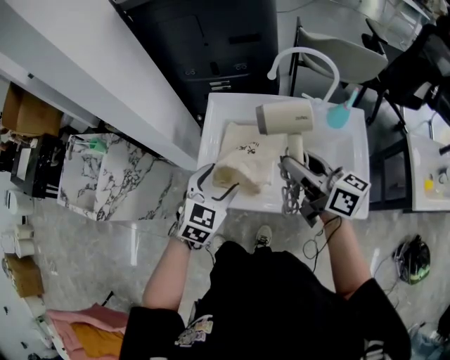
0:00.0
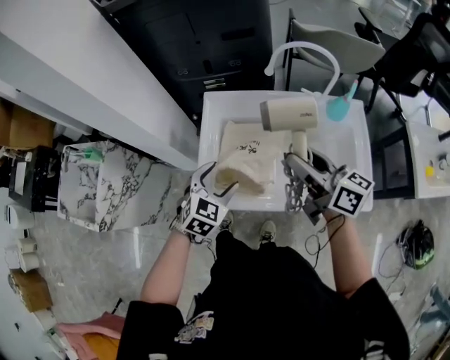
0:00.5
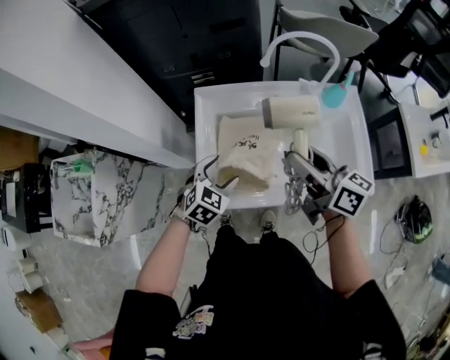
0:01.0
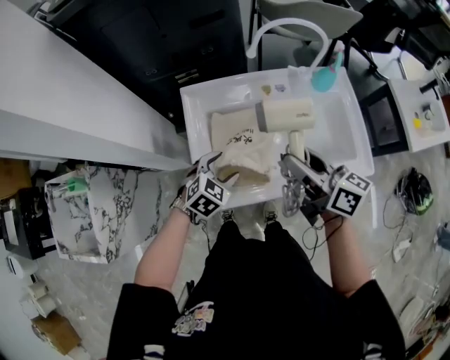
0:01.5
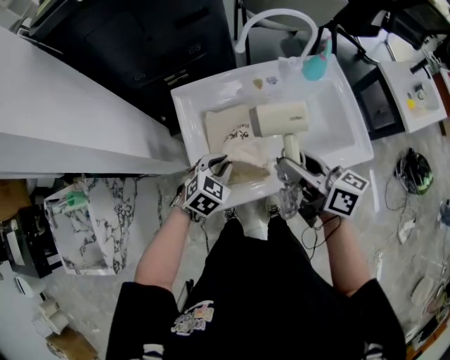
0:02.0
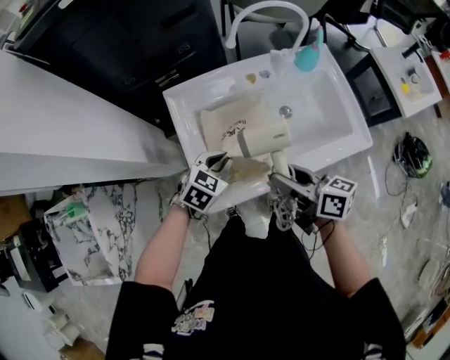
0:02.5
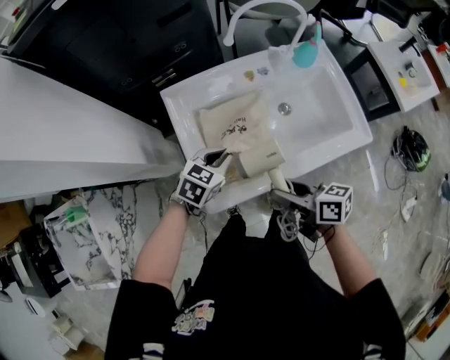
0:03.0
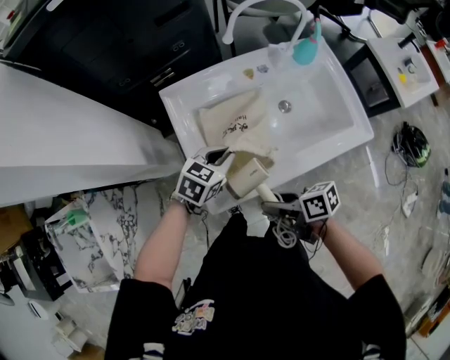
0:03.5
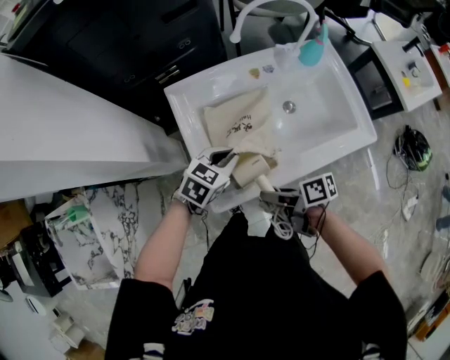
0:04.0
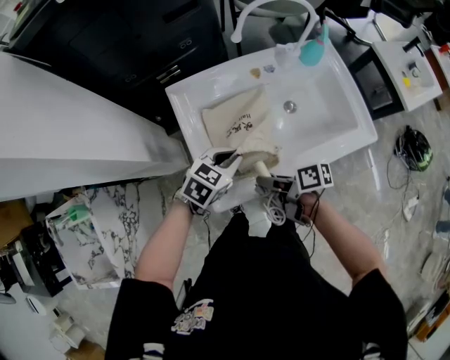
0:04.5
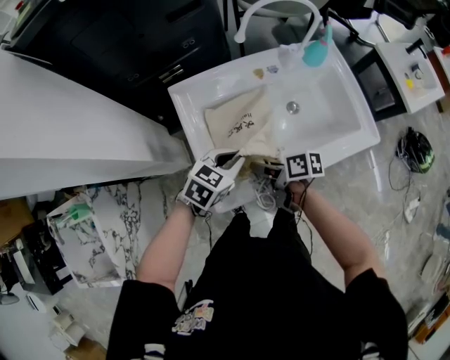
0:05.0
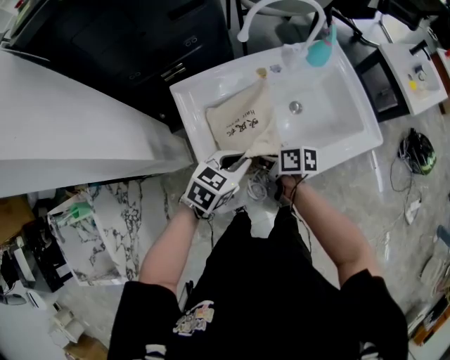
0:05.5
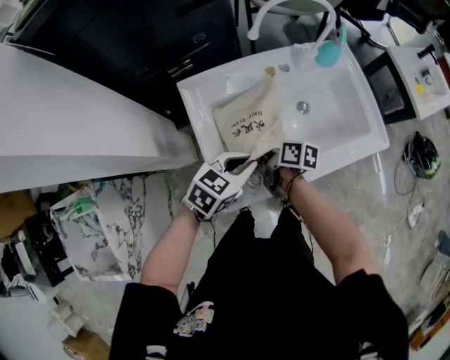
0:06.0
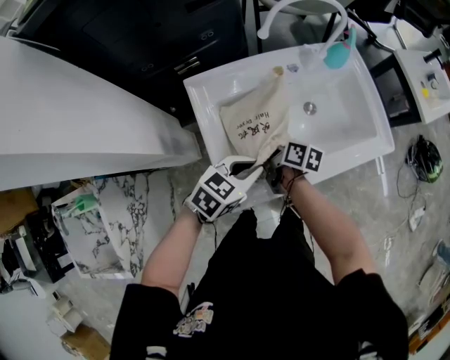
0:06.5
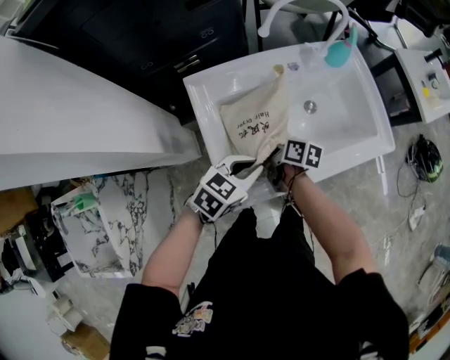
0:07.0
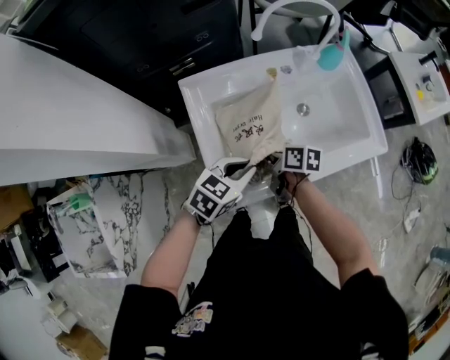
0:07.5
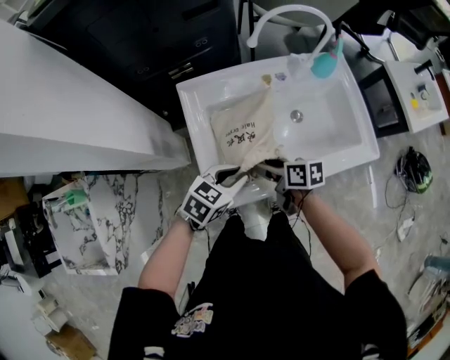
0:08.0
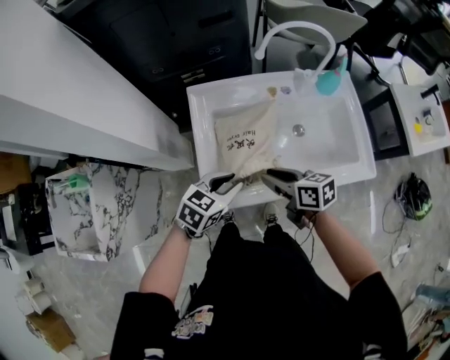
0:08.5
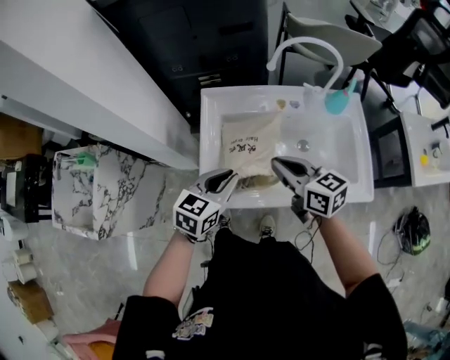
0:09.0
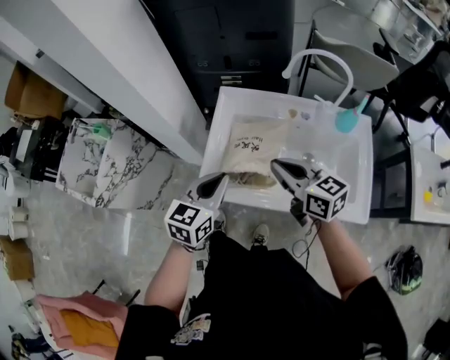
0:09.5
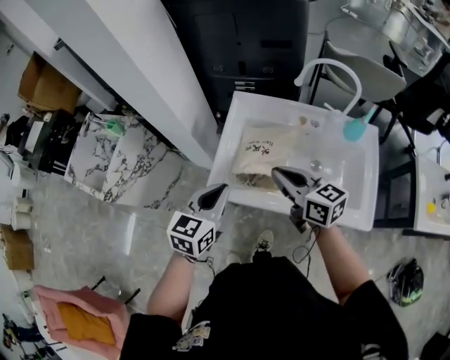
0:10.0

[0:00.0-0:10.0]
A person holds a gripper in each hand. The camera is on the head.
0:00.0 to 0:02.0: The left gripper heads downward, covering some 10 cm, changes its angle by some 30 degrees, and closes. Meanwhile the right gripper travels downward by some 5 cm, and changes its angle by roughly 20 degrees.
0:02.0 to 0:04.0: The right gripper goes approximately 15 cm downward, and turns by some 40 degrees.
0:04.0 to 0:06.0: The right gripper changes place by some 15 cm, and swivels approximately 30 degrees.
0:06.0 to 0:08.0: The right gripper changes place by about 5 cm, and changes its angle by roughly 20 degrees.
0:08.0 to 0:10.0: Both grippers travel together upward, some 15 cm. The right gripper rotates roughly 50 degrees, and closes up. The left gripper swivels some 50 degrees.

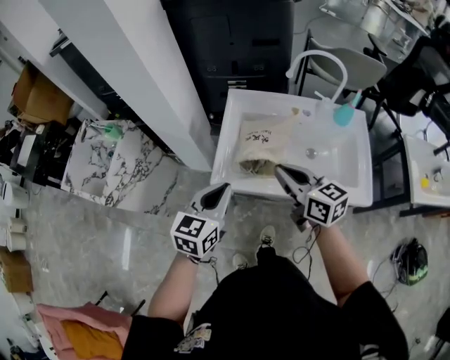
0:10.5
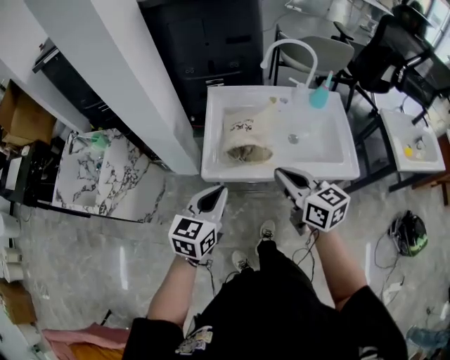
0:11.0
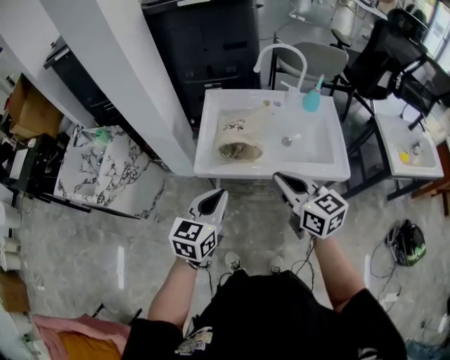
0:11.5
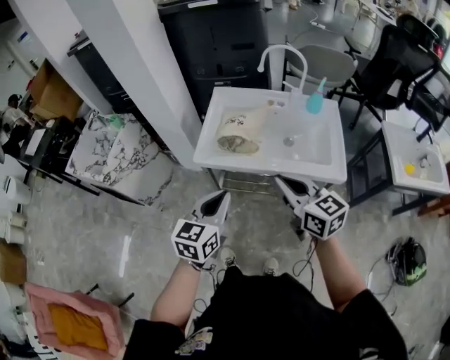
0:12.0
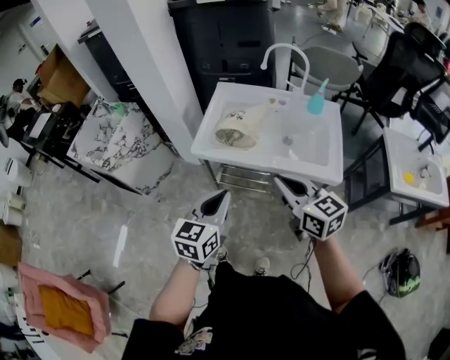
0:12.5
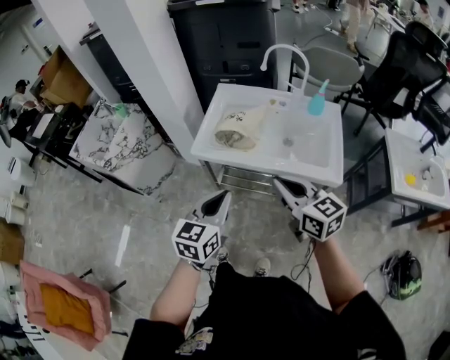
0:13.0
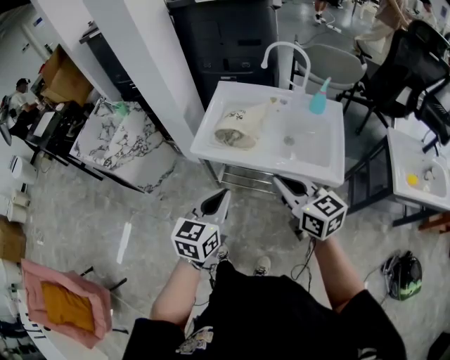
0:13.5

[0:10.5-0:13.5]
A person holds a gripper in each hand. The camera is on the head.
0:10.5 to 0:12.0: The two grippers go about 20 cm backward and to the right.
0:12.0 to 0:13.5: The grippers make only small movements.

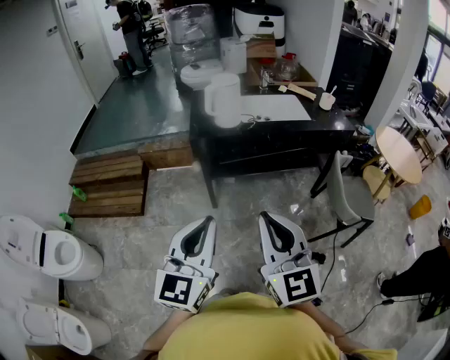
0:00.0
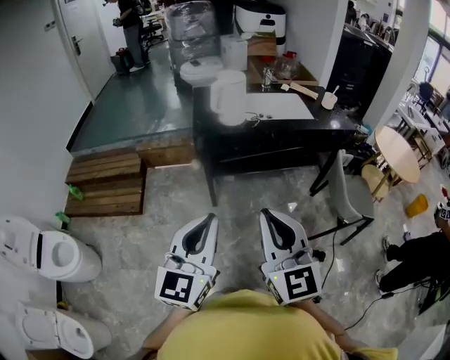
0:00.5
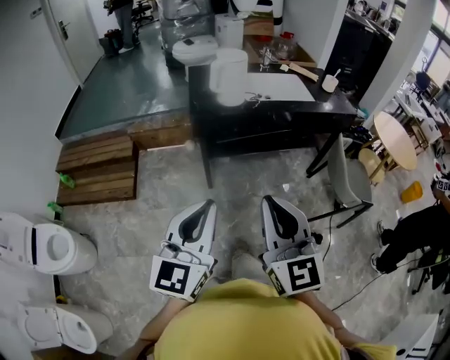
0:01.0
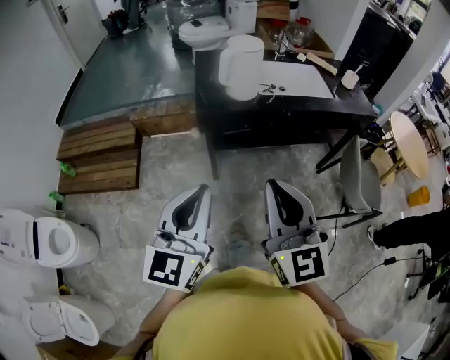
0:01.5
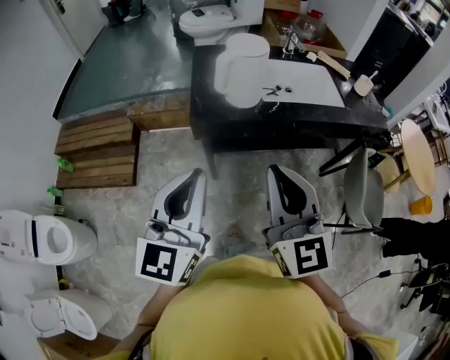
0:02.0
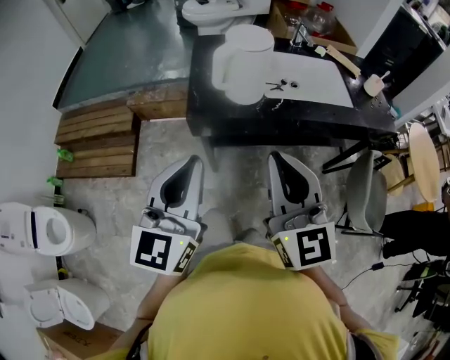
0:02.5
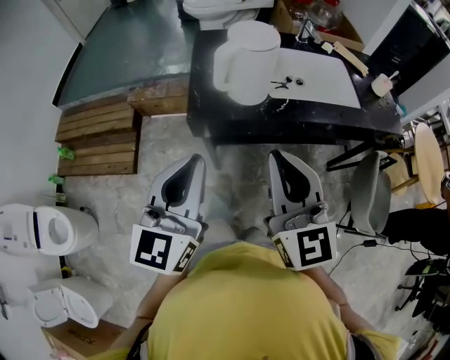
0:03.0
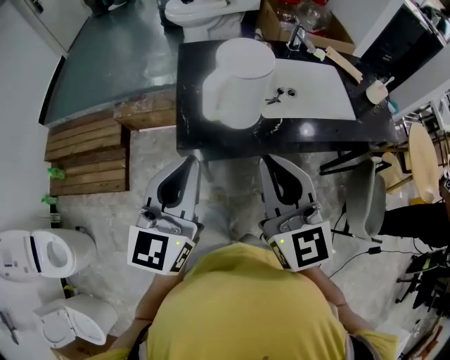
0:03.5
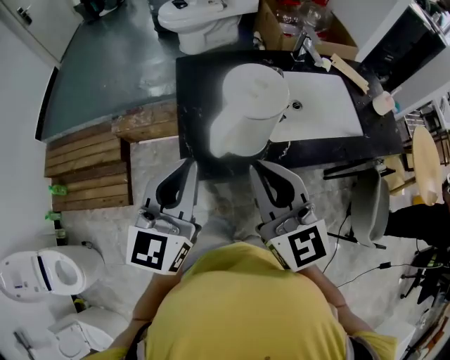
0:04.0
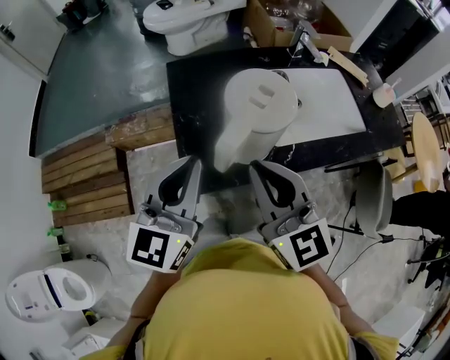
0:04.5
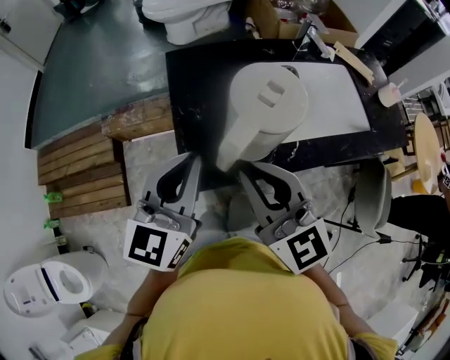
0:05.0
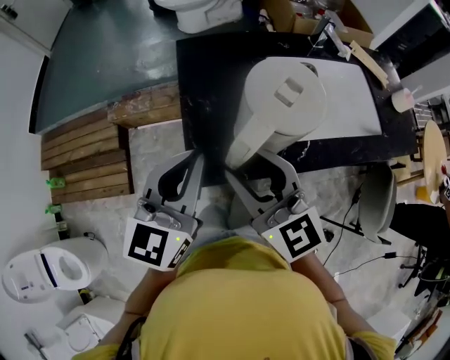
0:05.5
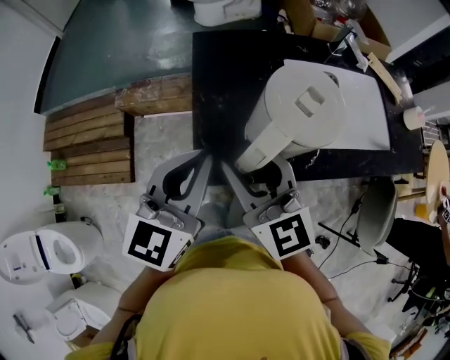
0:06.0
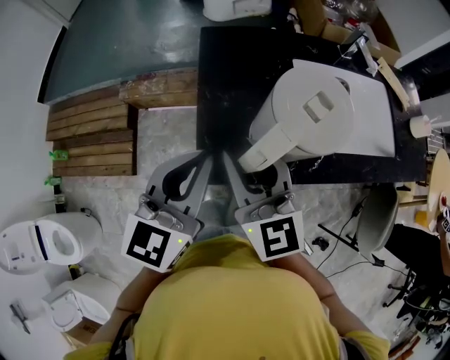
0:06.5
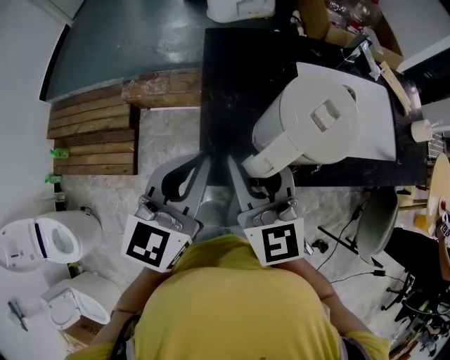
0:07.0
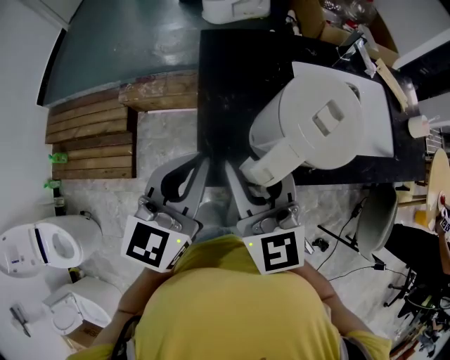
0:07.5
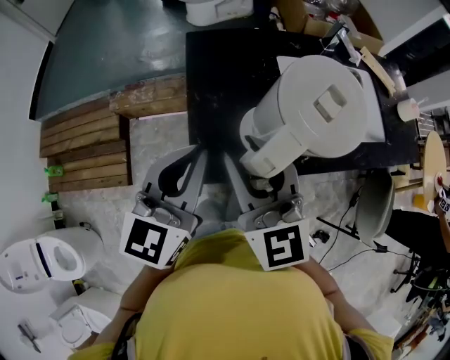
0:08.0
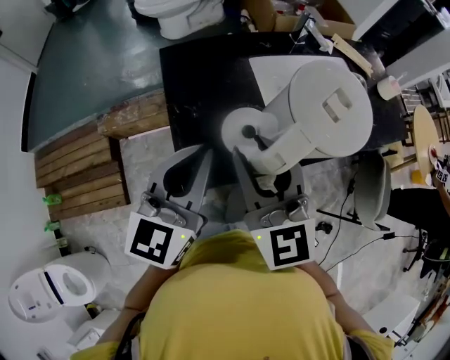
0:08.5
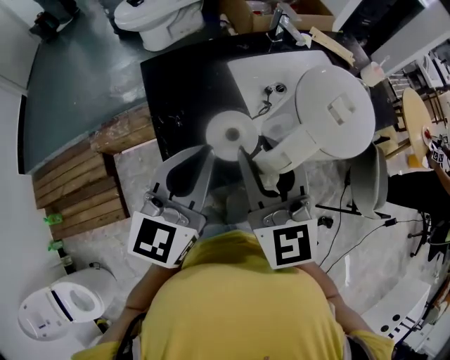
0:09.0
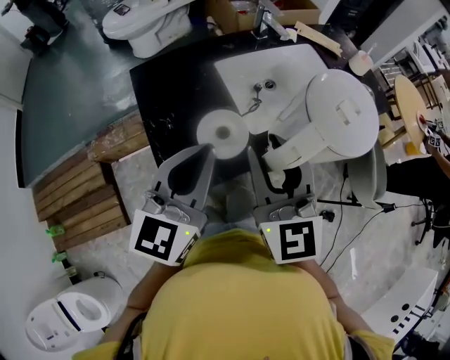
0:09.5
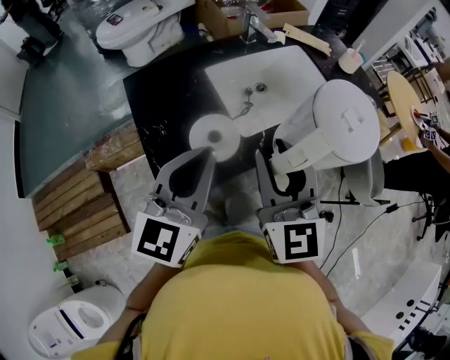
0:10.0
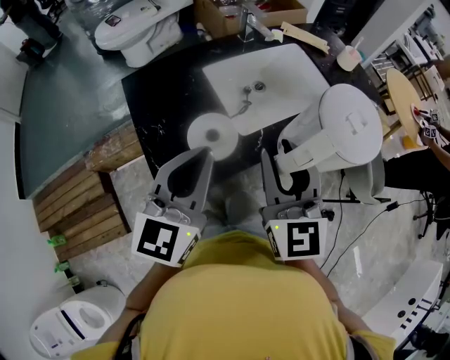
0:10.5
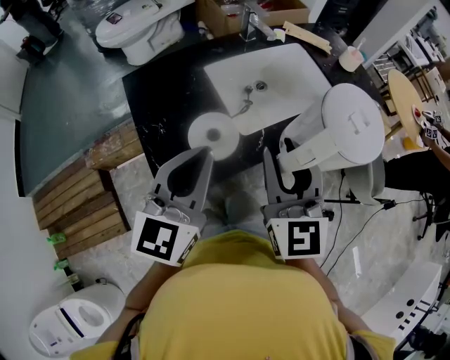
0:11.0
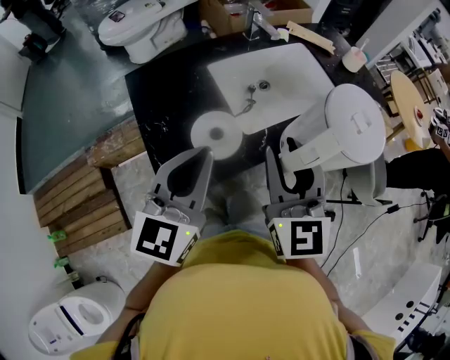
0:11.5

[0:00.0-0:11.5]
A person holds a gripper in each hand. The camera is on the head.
0:00.0 to 0:02.0: The grippers both shift forward by some 25 cm.
0:02.0 to 0:04.0: Both grippers travel together forward, about 30 cm.
0:04.0 to 0:06.0: The right gripper shifts approximately 15 cm forward, to the left and downward, and opens; the left gripper shifts about 10 cm forward and downward.
0:06.0 to 0:07.5: There are only small adjustments of the grippers.
0:07.5 to 0:09.5: Both grippers travel together to the right, approximately 10 cm. The right gripper rotates about 30 degrees. Meanwhile the left gripper turns by roughly 20 degrees.
0:09.5 to 0:11.5: The right gripper heads to the right, covering some 5 cm.

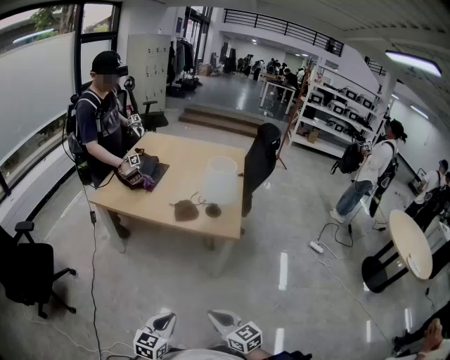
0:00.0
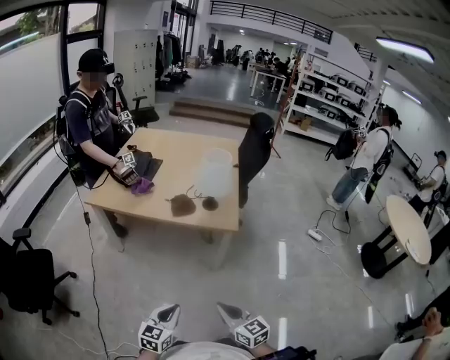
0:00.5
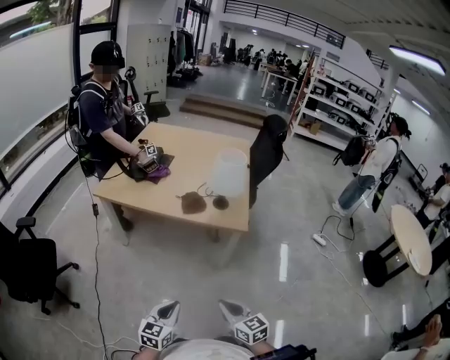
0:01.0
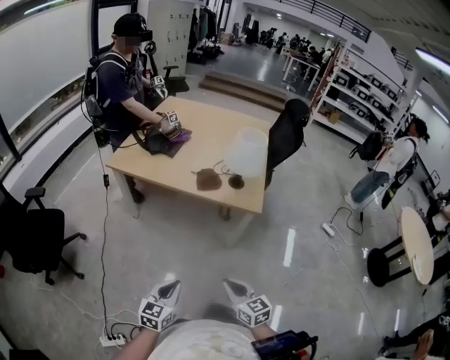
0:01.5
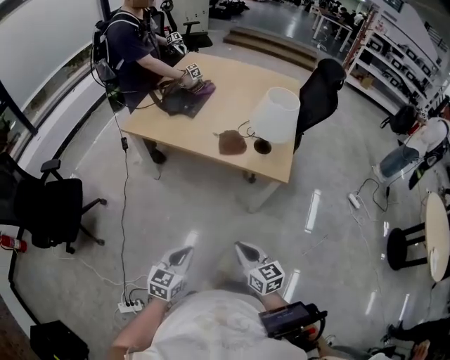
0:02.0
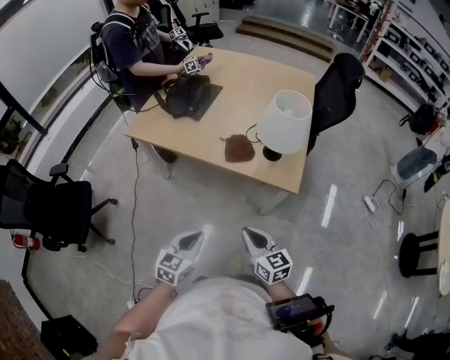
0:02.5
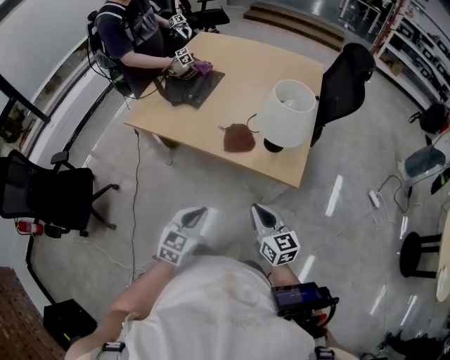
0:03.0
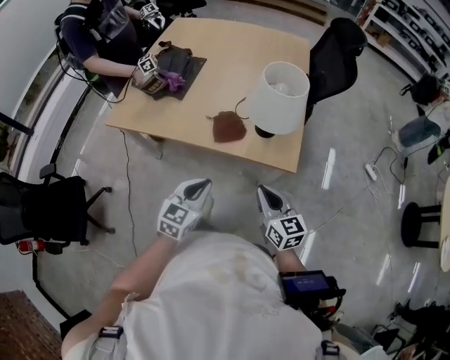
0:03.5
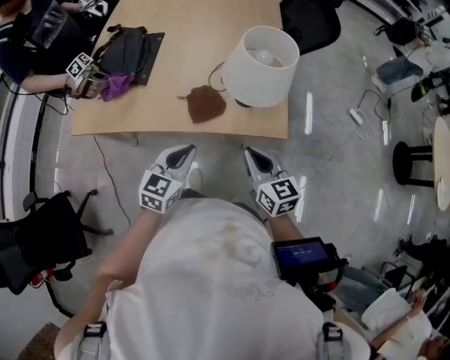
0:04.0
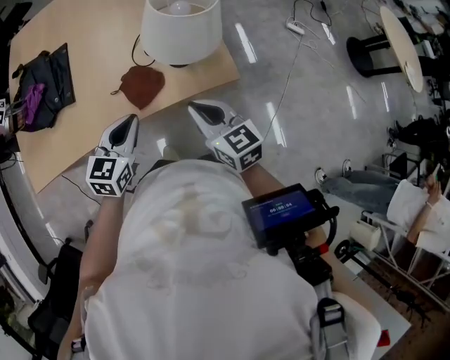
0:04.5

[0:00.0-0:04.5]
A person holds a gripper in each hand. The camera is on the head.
0:00.0 to 0:02.0: The left gripper moves forward and to the left, some 10 cm; the right gripper moves forward, about 10 cm.
0:02.0 to 0:04.5: The left gripper moves some 40 cm, and changes its angle by some 30 degrees. Meanwhile the right gripper ends up roughly 35 cm from where it was, and turns by about 30 degrees.
